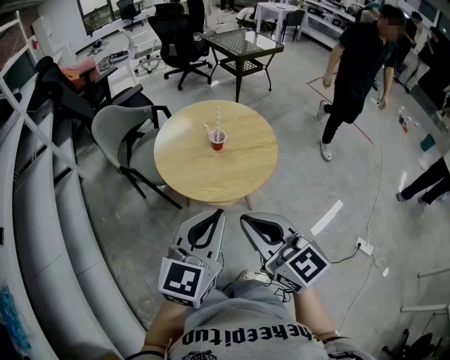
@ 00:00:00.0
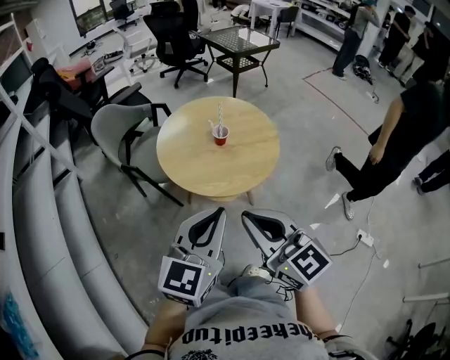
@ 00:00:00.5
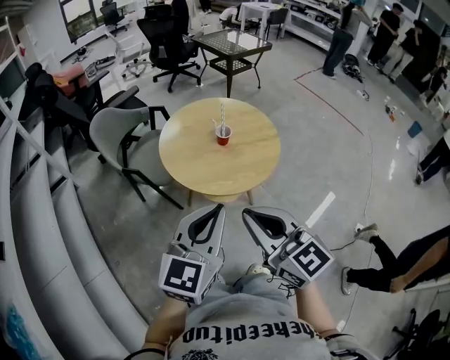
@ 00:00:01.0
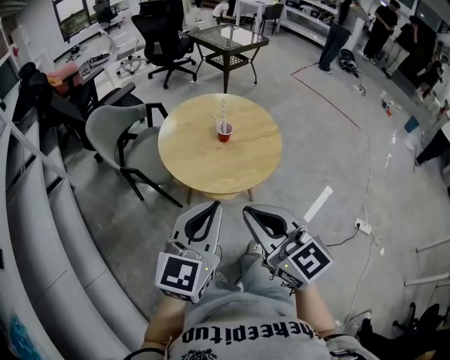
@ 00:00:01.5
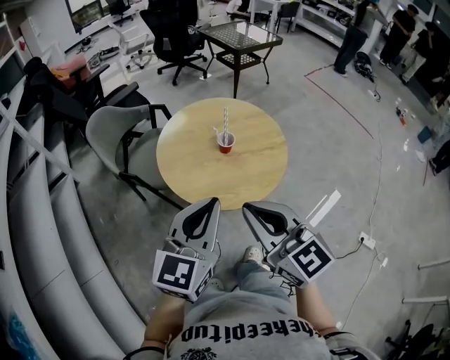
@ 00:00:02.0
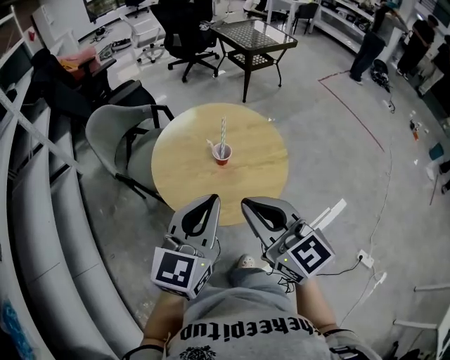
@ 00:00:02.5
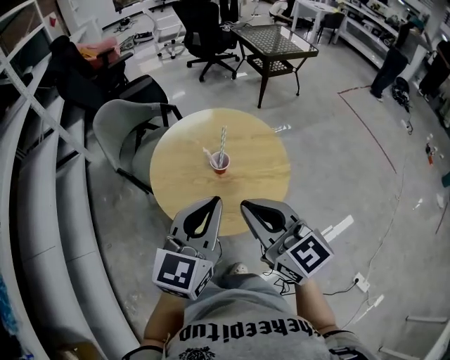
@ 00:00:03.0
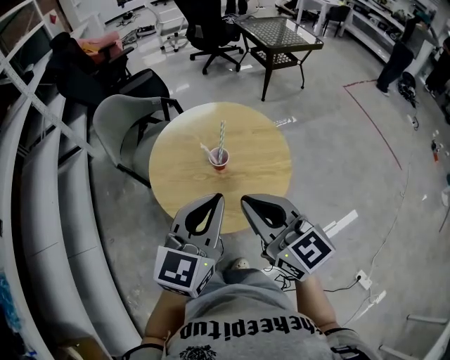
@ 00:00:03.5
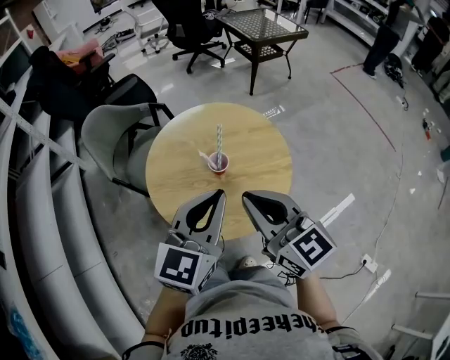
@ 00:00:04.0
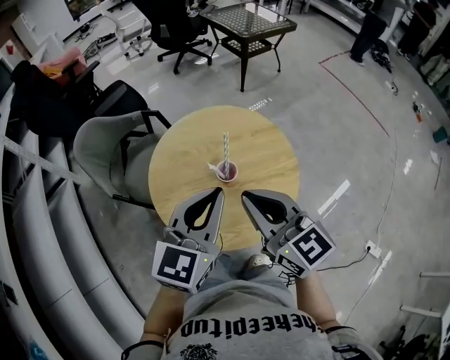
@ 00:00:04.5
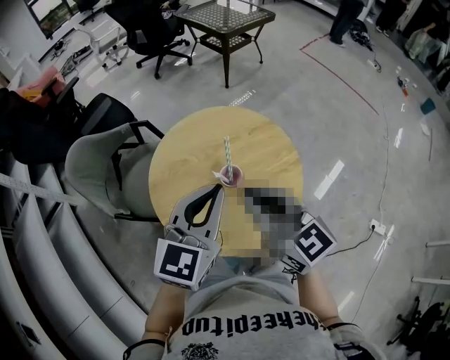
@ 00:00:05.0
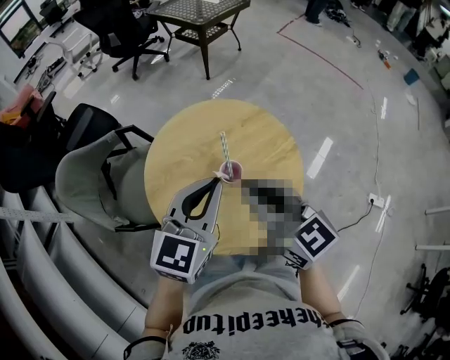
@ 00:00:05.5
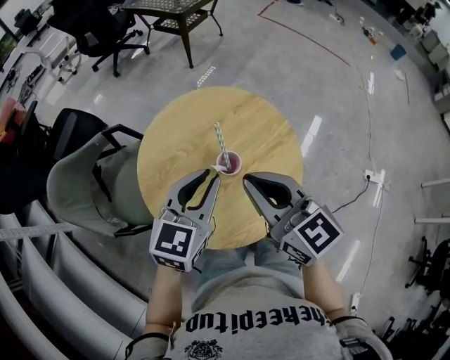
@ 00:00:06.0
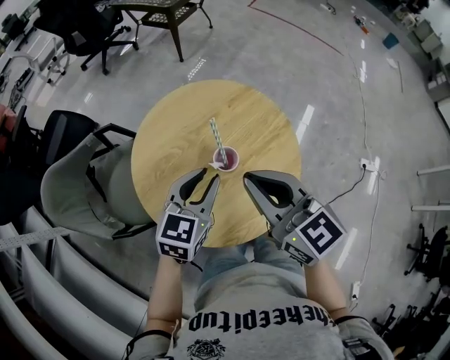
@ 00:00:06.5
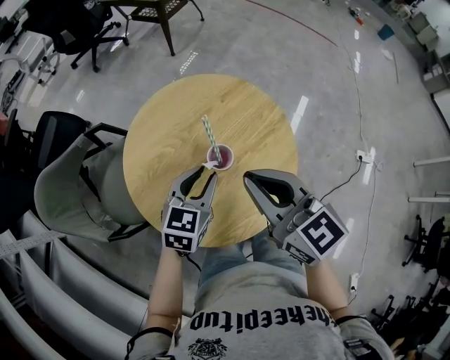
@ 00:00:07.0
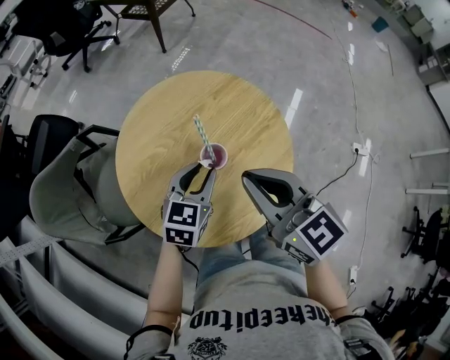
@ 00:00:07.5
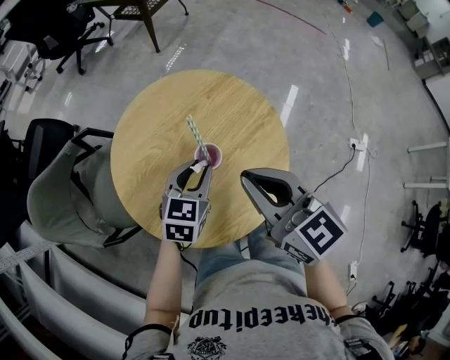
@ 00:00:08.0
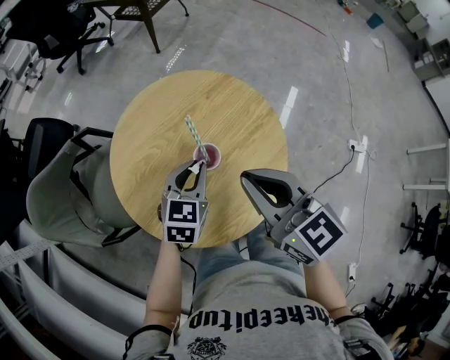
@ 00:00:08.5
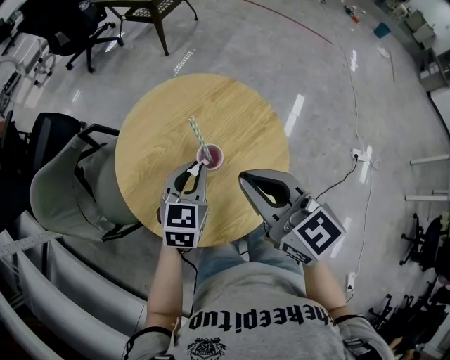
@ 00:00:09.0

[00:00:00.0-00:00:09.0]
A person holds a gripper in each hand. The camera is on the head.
00:00:00.0 to 00:00:02.0: The right gripper shifts about 5 cm forward. The left gripper is displaced forward and to the left by roughly 10 cm.
00:00:02.0 to 00:00:04.5: Both grippers move forward, about 20 cm.
00:00:04.5 to 00:00:07.0: The right gripper ends up some 10 cm from where it was, and changes its angle by some 30 degrees, while the left gripper is displaced downward by approximately 20 cm, rotates approximately 30 degrees, and opens.
00:00:07.0 to 00:00:09.0: The grippers make only small movements.

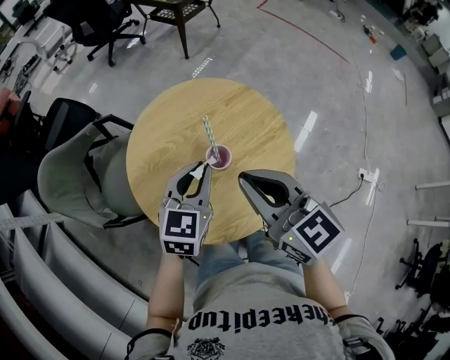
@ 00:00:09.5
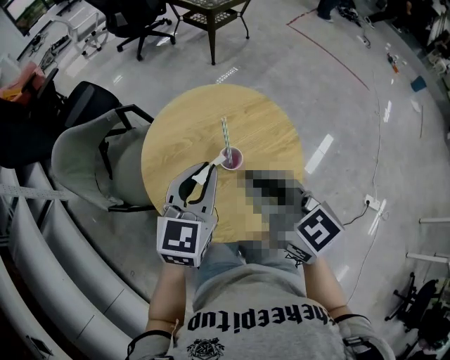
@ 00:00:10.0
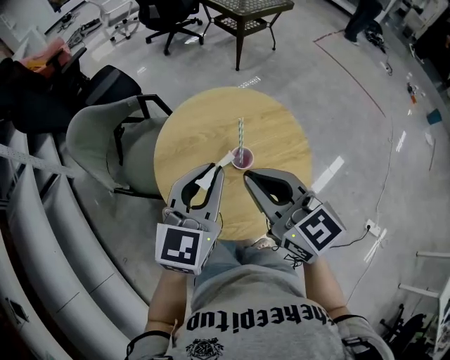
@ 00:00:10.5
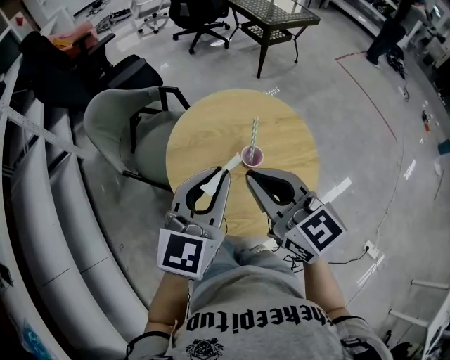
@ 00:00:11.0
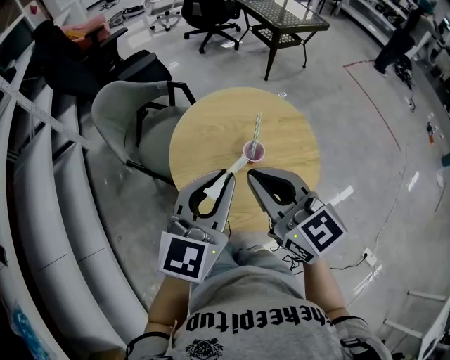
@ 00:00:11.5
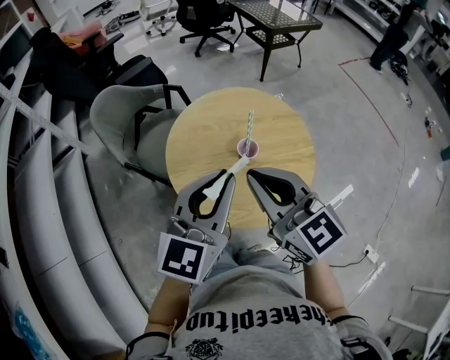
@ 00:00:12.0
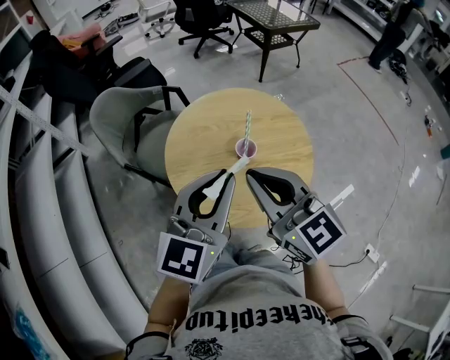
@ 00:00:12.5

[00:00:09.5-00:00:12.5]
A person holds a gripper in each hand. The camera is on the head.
00:00:09.5 to 00:00:11.0: The right gripper ends up approximately 5 cm from where it was, and changes its angle by roughly 20 degrees. Meanwhile the left gripper is displaced upward and backward by approximately 15 cm, and changes its angle by roughly 20 degrees.
00:00:11.0 to 00:00:12.5: The left gripper goes roughly 5 cm backward; the right gripper shifts by approximately 5 cm.

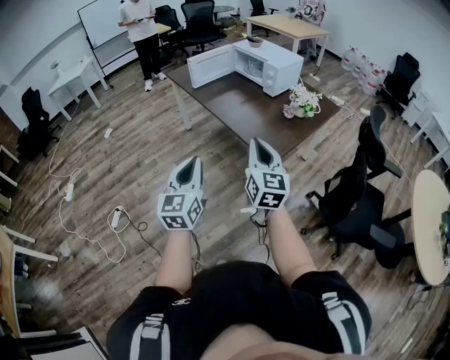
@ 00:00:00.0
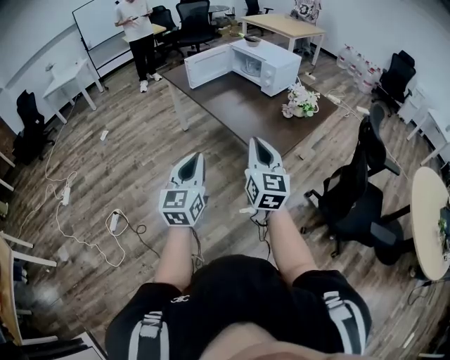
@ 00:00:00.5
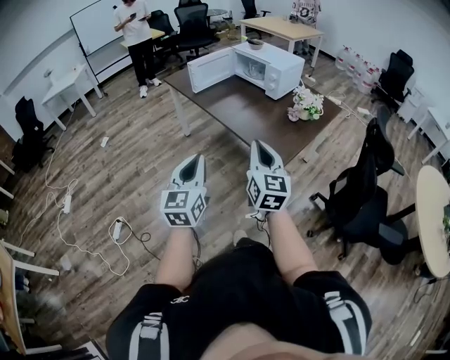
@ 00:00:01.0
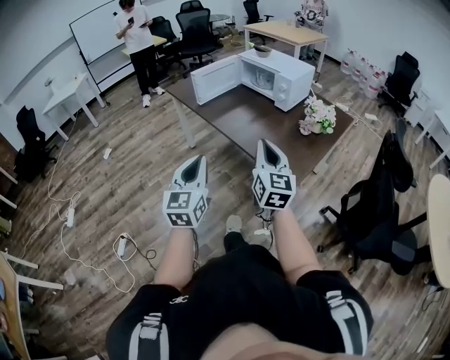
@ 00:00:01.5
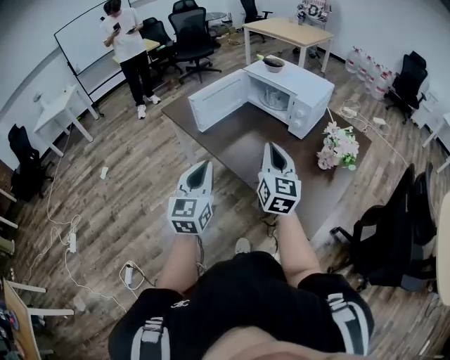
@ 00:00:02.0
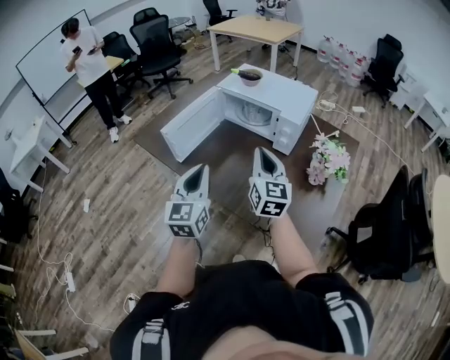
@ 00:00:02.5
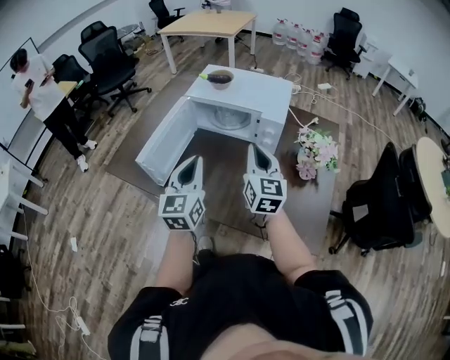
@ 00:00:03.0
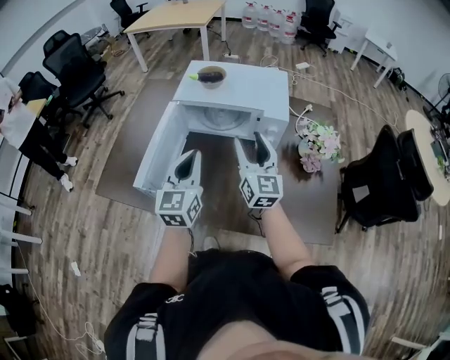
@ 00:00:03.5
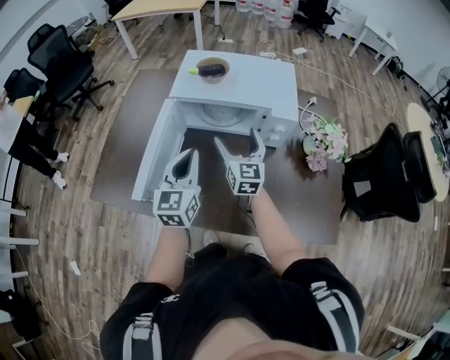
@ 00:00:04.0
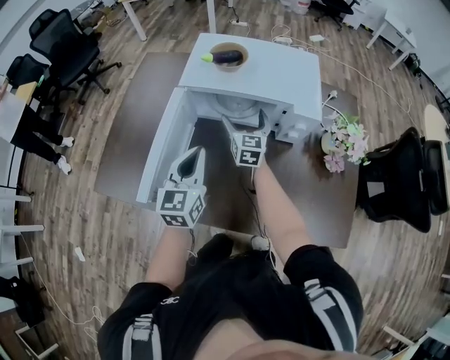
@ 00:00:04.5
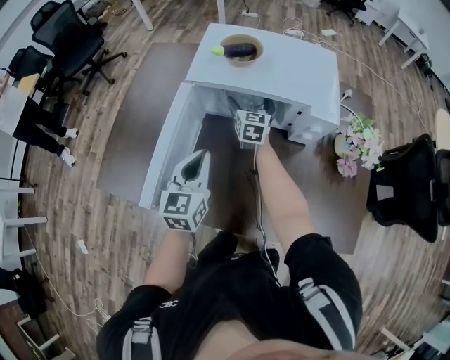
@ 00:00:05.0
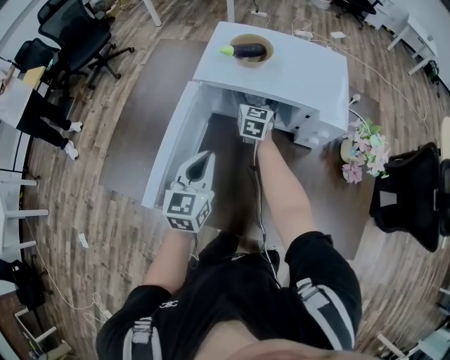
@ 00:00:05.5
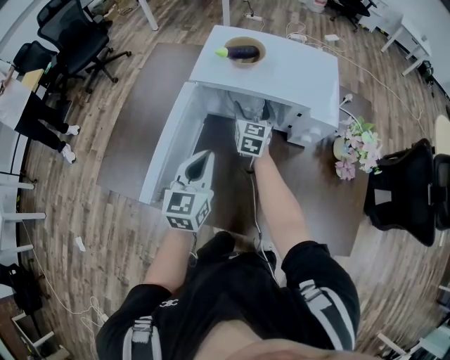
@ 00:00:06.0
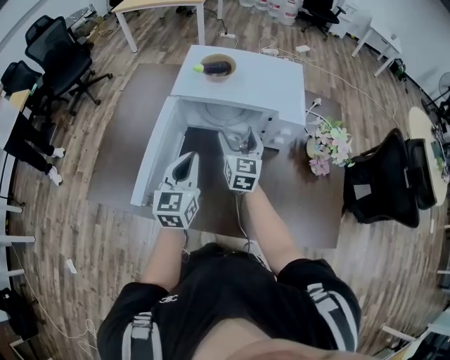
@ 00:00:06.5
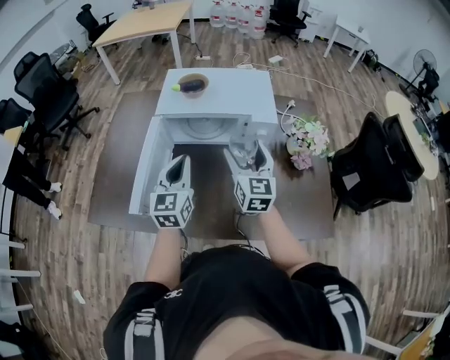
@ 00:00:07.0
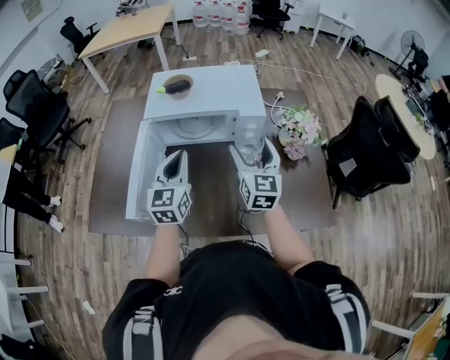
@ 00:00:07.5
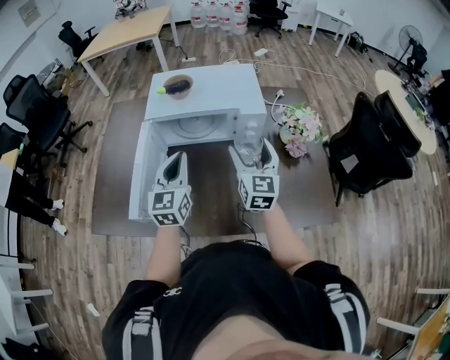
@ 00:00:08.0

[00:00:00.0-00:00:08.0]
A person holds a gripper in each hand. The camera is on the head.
00:00:00.0 to 00:00:02.0: Both grippers are carried forward, roughly 40 cm.
00:00:02.0 to 00:00:04.0: The pair of grippers is taken approximately 50 cm. The left gripper rotates approximately 30 degrees. The right gripper swivels roughly 30 degrees, and opens its fingers.
00:00:04.0 to 00:00:06.0: The left gripper goes approximately 5 cm downward. The right gripper goes approximately 20 cm forward and downward.
00:00:06.0 to 00:00:08.0: The left gripper travels upward and to the right by some 10 cm. The right gripper heads backward, to the right and upward, covering roughly 30 cm.

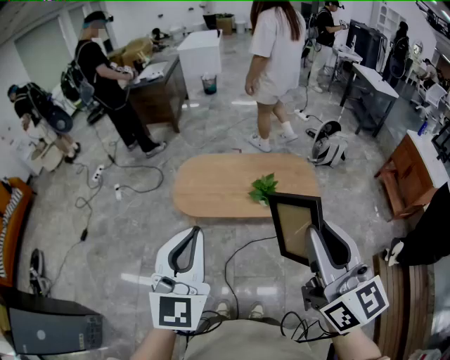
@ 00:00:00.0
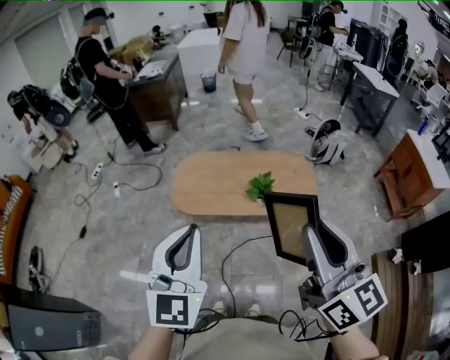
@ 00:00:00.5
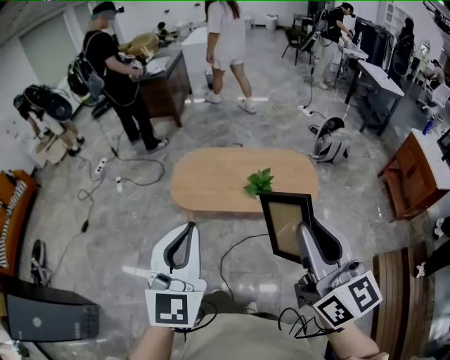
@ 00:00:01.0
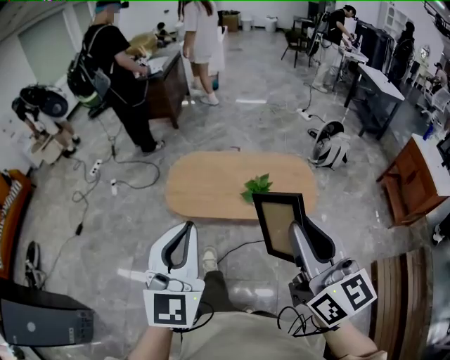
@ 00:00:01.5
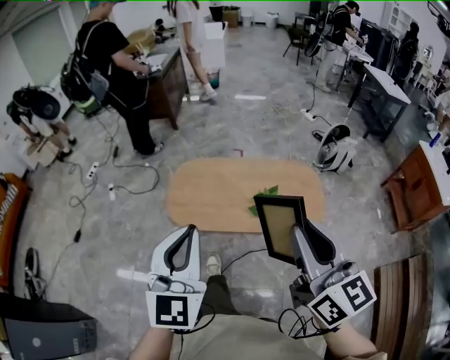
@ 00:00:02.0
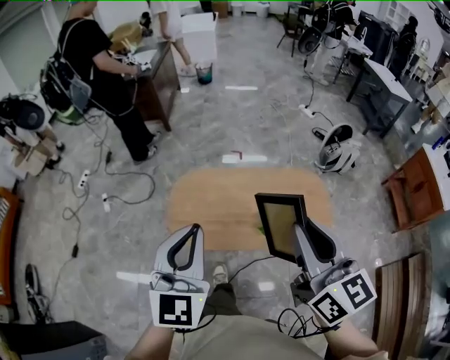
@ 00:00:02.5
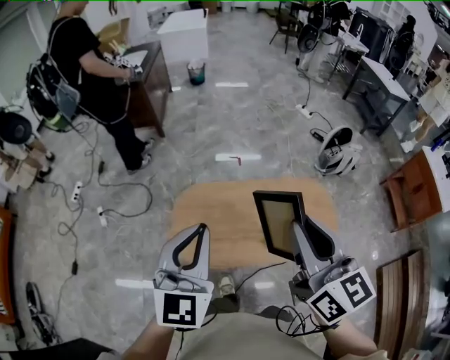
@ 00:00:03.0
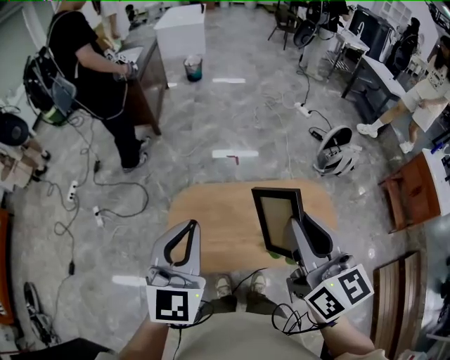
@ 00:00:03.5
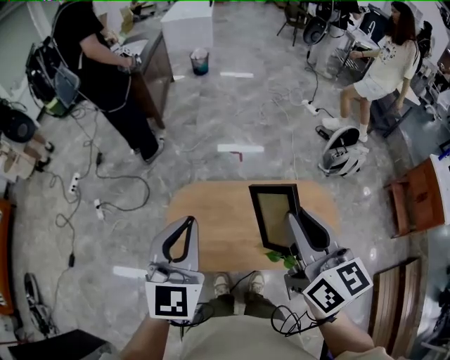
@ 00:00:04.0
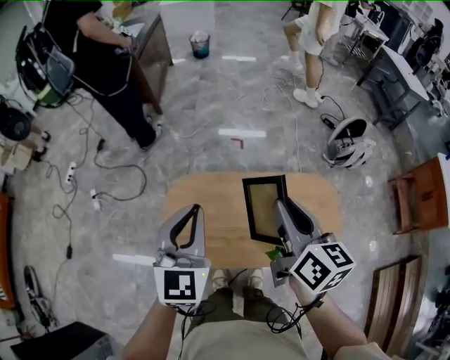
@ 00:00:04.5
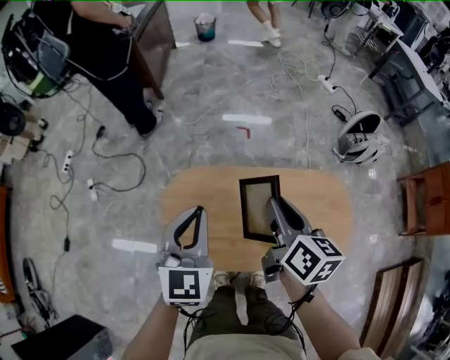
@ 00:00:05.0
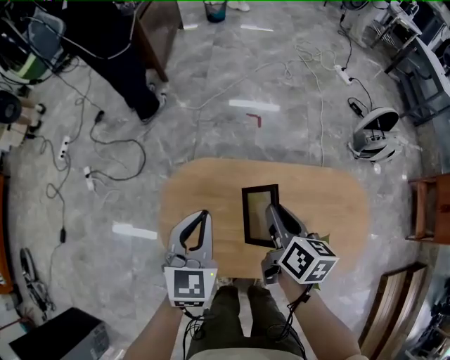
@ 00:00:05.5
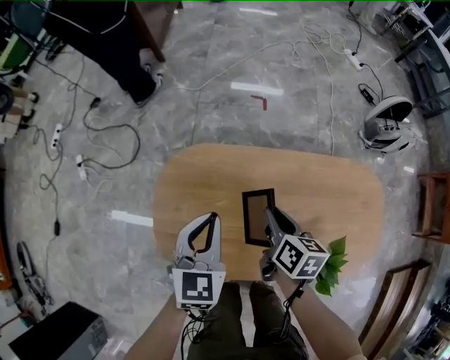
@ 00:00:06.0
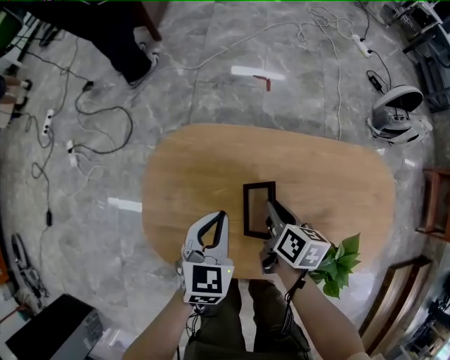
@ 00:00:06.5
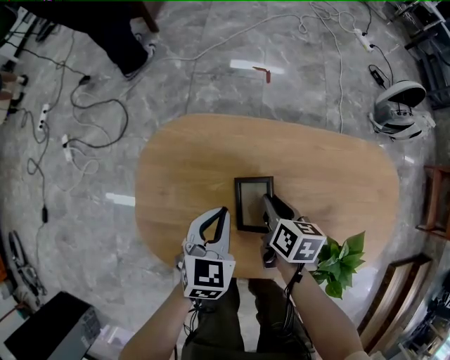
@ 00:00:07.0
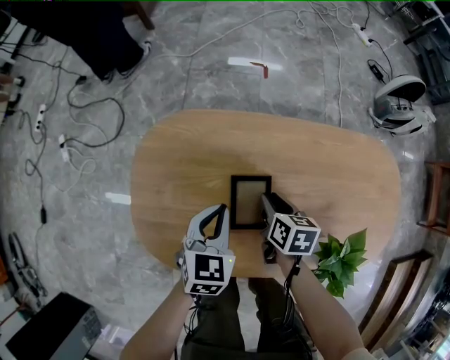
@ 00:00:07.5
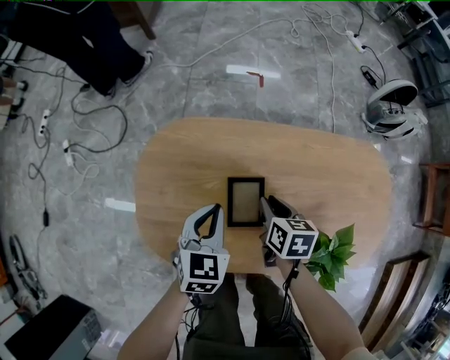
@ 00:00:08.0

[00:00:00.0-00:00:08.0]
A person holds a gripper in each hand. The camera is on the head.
00:00:00.0 to 00:00:02.0: The right gripper moves forward and downward, roughly 15 cm. The left gripper moves forward, roughly 15 cm.
00:00:02.0 to 00:00:04.0: The grippers both shift forward by some 35 cm.
00:00:04.0 to 00:00:06.0: Both grippers travel together downward, roughly 40 cm. The left gripper turns by approximately 20 degrees, while the right gripper angles its fingers downward, by some 30 degrees.
00:00:06.0 to 00:00:08.0: Both grippers travel together downward, some 15 cm.
